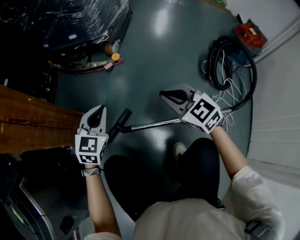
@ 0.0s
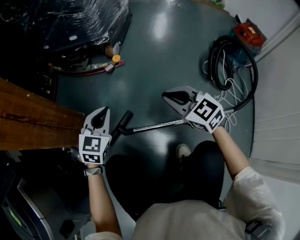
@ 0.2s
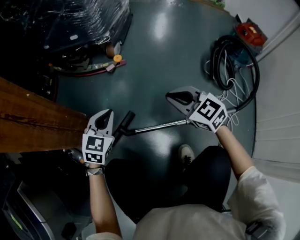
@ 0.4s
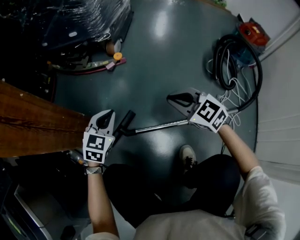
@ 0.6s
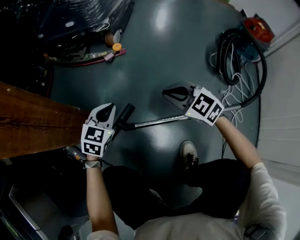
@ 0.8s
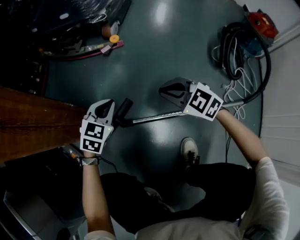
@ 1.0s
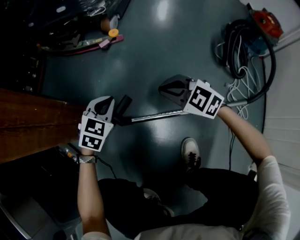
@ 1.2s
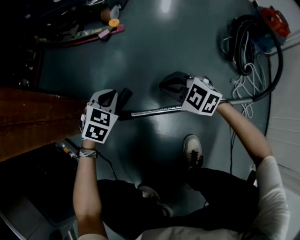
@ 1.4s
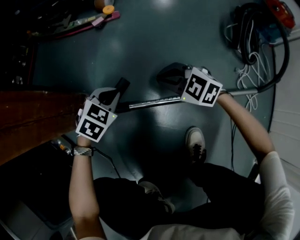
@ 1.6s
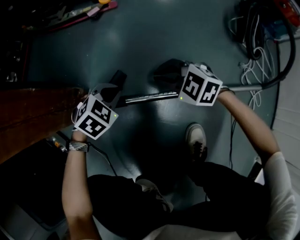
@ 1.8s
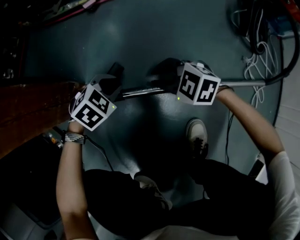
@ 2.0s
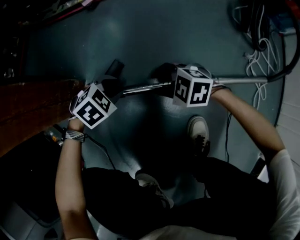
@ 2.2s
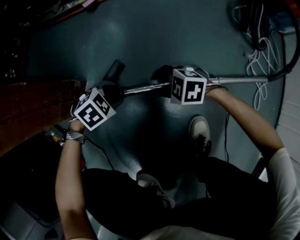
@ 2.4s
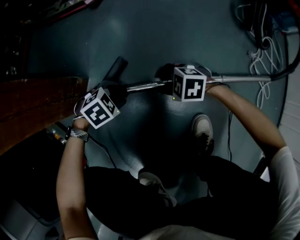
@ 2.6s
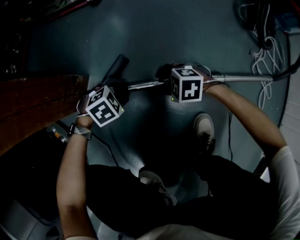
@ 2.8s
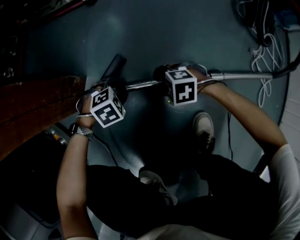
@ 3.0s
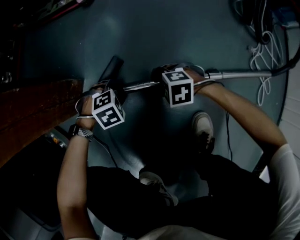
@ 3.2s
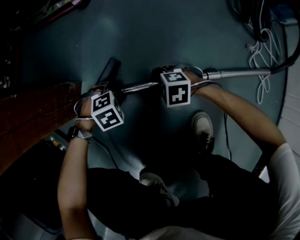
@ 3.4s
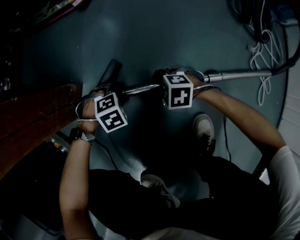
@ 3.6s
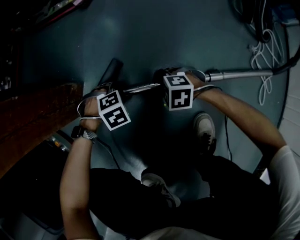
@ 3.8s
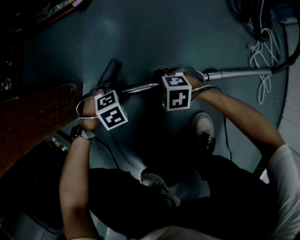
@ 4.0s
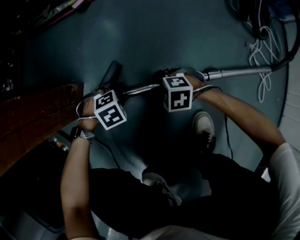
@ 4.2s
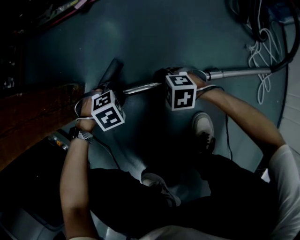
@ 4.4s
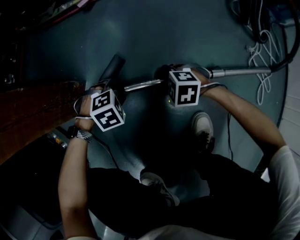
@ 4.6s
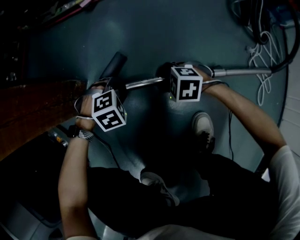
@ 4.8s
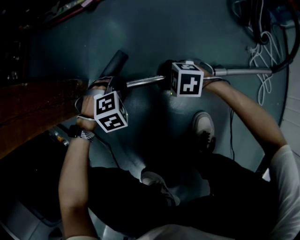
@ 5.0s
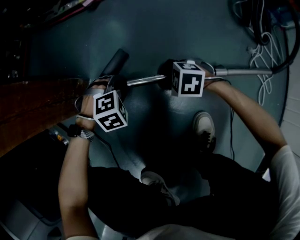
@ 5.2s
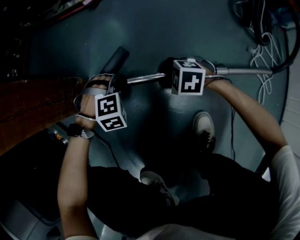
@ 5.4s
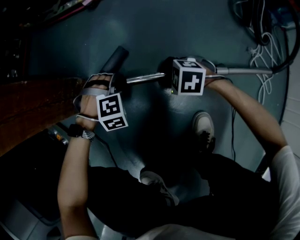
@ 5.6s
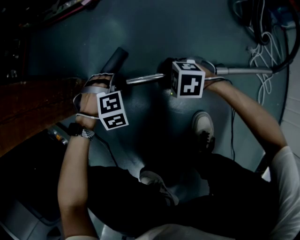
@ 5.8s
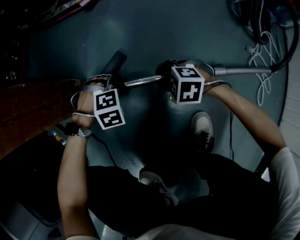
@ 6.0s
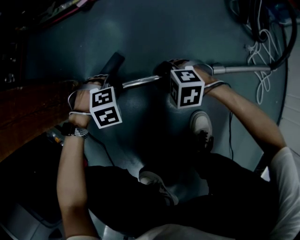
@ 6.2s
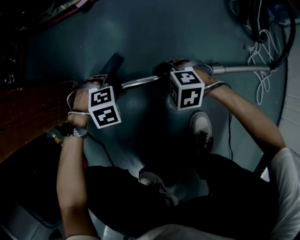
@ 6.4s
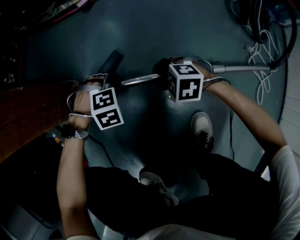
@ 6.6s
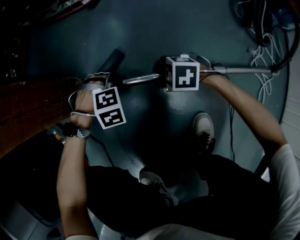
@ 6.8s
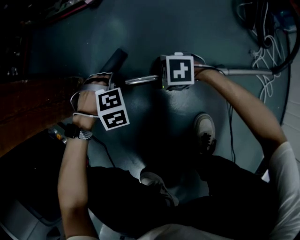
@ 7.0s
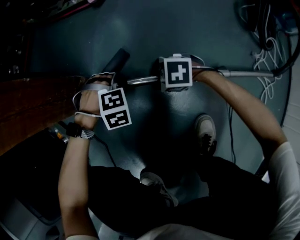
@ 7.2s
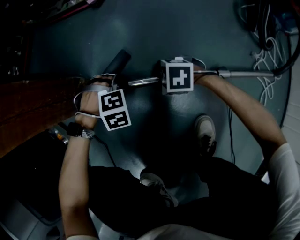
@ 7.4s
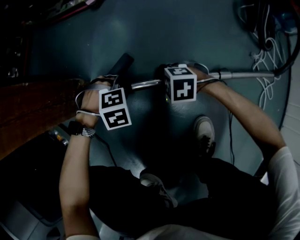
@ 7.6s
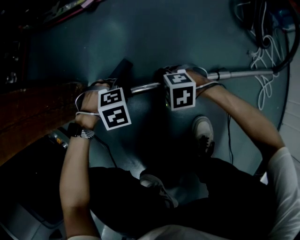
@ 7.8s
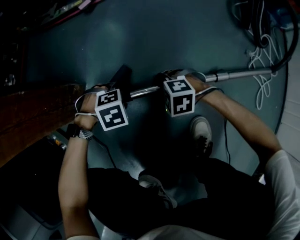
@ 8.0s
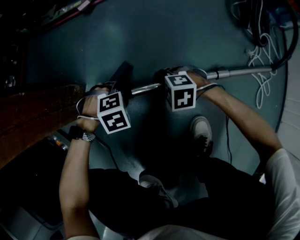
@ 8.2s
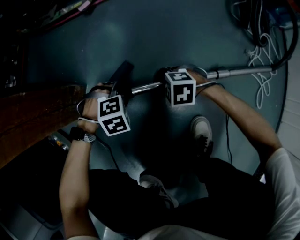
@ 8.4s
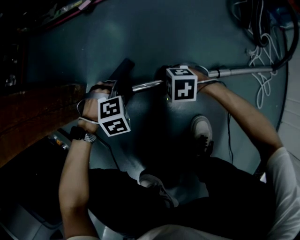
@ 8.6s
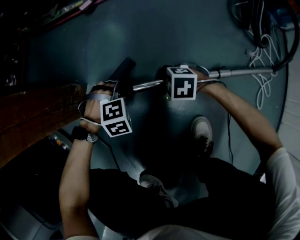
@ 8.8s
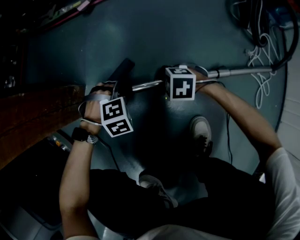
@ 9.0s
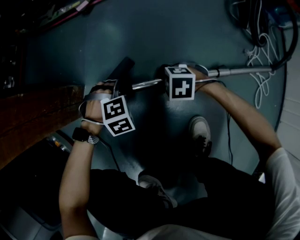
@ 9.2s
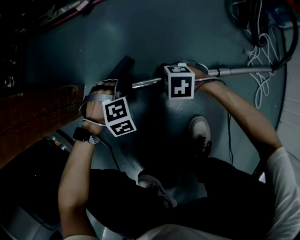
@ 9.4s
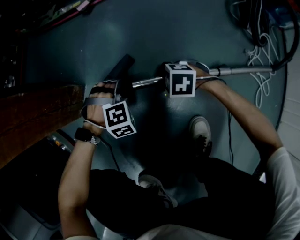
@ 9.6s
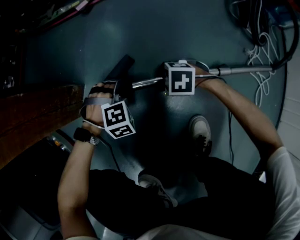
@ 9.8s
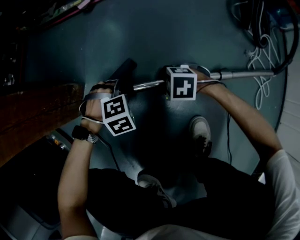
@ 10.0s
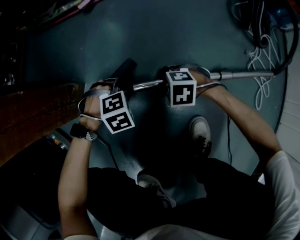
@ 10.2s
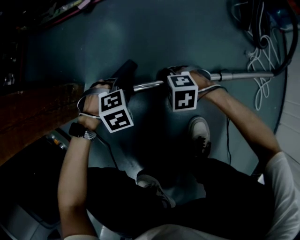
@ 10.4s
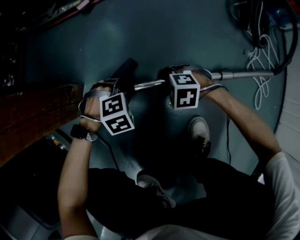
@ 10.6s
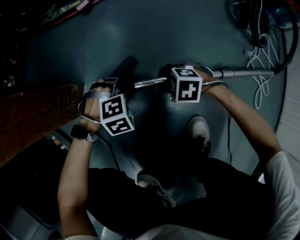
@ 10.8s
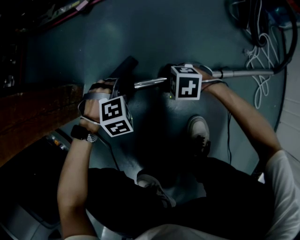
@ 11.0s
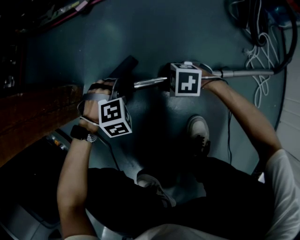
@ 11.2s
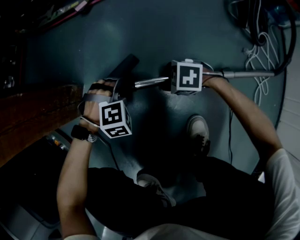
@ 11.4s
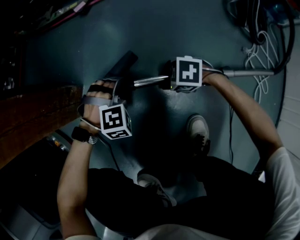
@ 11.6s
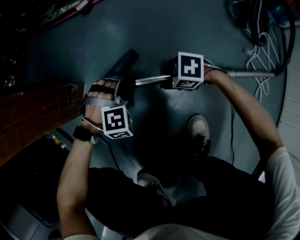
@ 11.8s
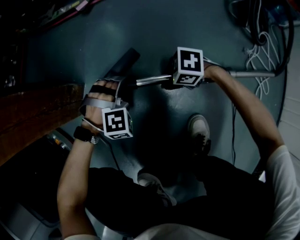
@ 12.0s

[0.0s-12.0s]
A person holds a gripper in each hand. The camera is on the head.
0.0s to 1.6s: Both grippers move downward, some 30 cm. The left gripper turns by about 30 degrees. The right gripper rotates about 30 degrees.
1.6s to 3.0s: The two grippers go roughly 15 cm downward. The left gripper rotates approximately 40 degrees, and opens its fingers. The right gripper rotates roughly 30 degrees, and opens its fingers.
3.0s to 4.4s: There are only small adjustments of the grippers.
6.0s to 10.4s: The grippers stay close to where they were, moving slightly.
10.4s to 12.0s: The right gripper rotates roughly 30 degrees, while the left gripper changes its angle by approximately 30 degrees.

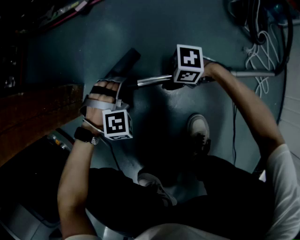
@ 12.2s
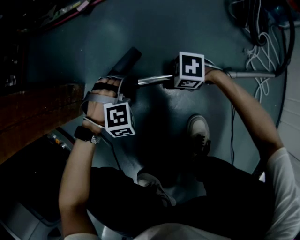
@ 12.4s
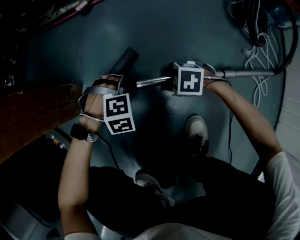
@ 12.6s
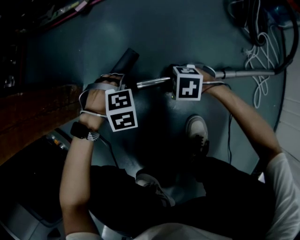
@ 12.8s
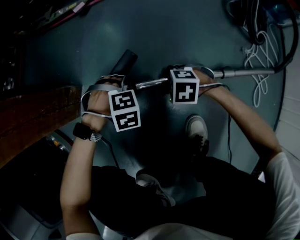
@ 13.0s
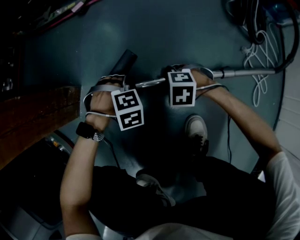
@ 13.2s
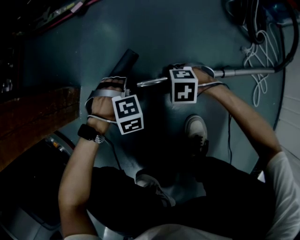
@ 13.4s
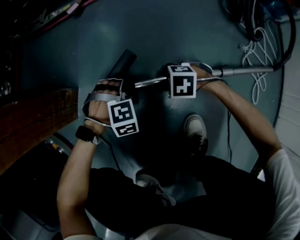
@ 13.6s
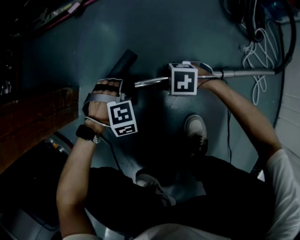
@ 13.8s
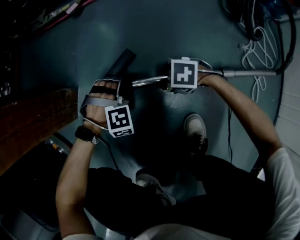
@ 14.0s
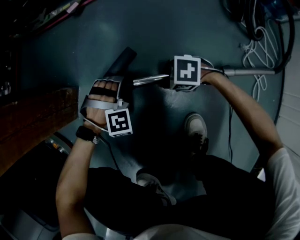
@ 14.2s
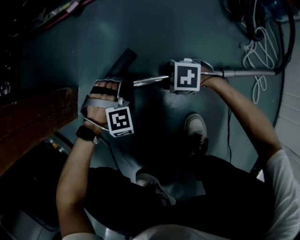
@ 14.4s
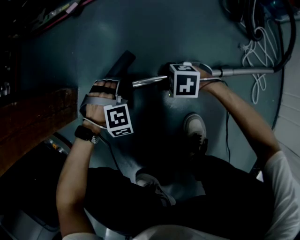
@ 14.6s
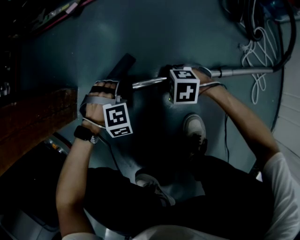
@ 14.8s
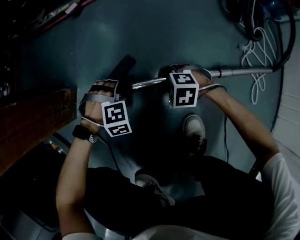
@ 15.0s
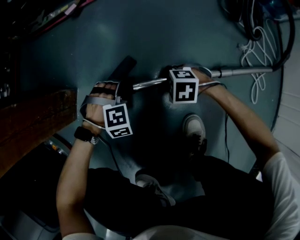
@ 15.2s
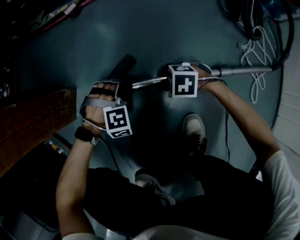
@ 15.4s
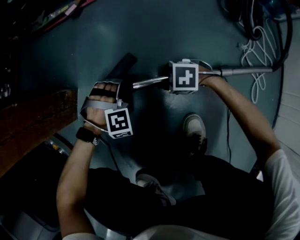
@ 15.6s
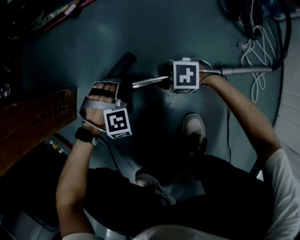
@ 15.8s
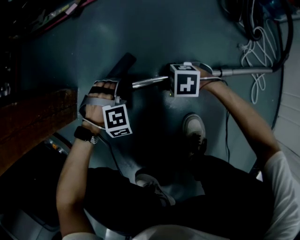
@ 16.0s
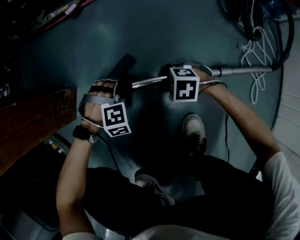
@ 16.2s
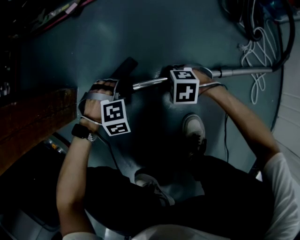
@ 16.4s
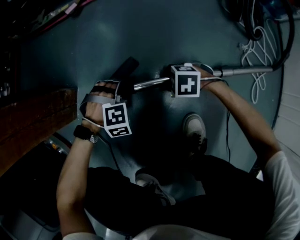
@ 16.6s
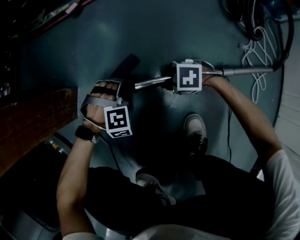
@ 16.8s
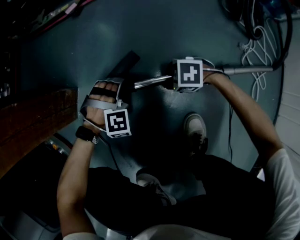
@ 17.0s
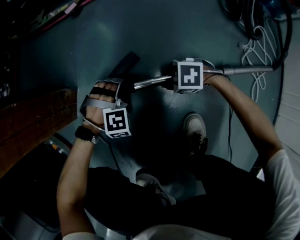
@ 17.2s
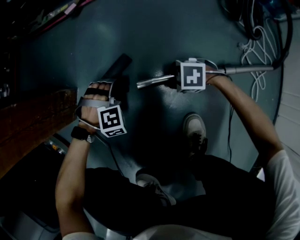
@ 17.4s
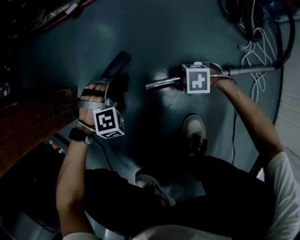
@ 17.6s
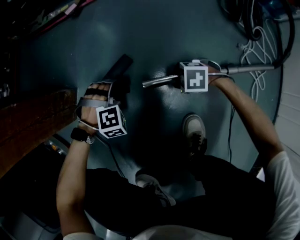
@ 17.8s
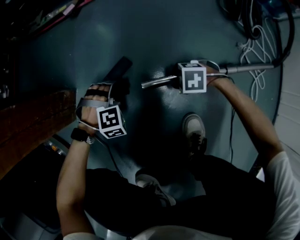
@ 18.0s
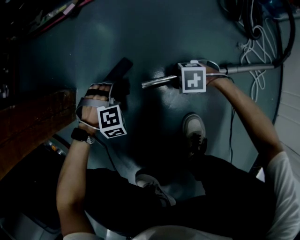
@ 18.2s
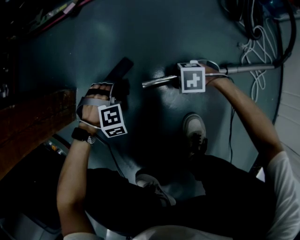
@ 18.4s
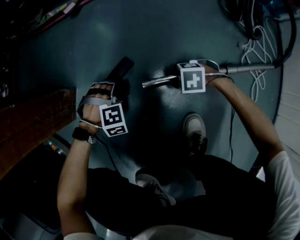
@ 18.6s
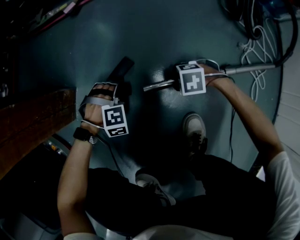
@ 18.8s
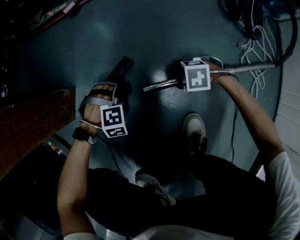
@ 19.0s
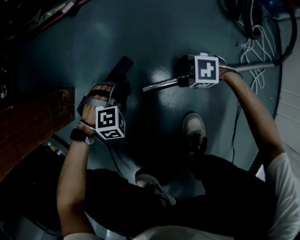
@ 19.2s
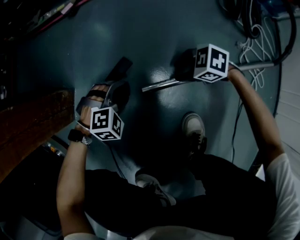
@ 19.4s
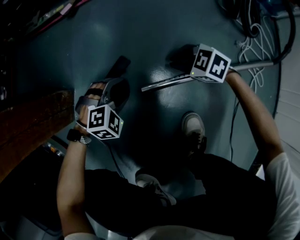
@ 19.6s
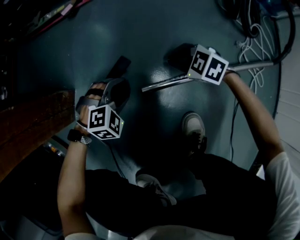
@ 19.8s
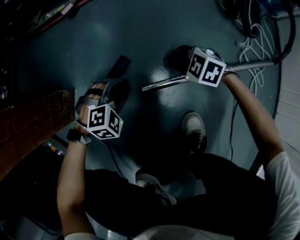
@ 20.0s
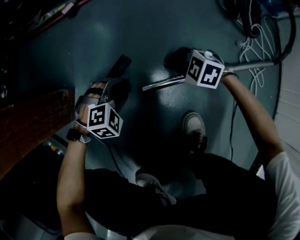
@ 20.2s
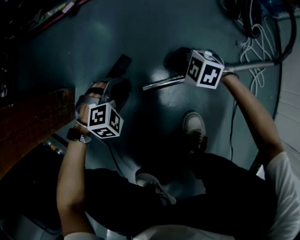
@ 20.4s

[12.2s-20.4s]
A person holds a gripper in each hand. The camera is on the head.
12.2s to 13.8s: The right gripper swivels roughly 20 degrees.
13.8s to 17.2s: The grippers stay close to where they were, moving slightly.
17.2s to 18.8s: There are only small adjustments of the grippers.
18.8s to 20.4s: The left gripper ends up some 5 cm from where it was, and changes its angle by some 20 degrees; the right gripper shifts by roughly 10 cm, swivels approximately 30 degrees, and closes.

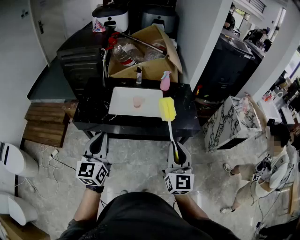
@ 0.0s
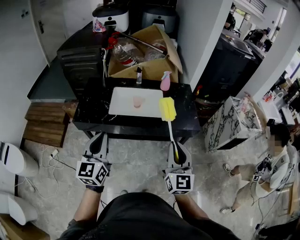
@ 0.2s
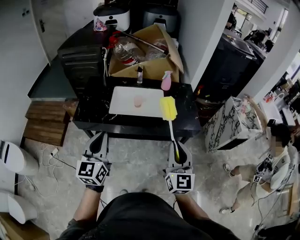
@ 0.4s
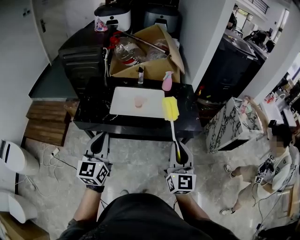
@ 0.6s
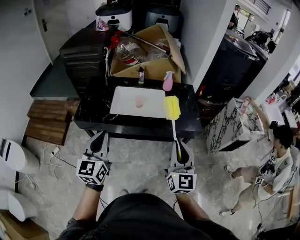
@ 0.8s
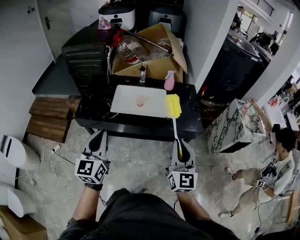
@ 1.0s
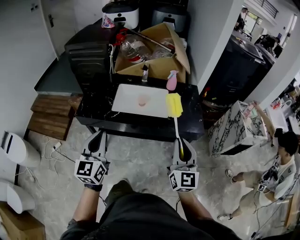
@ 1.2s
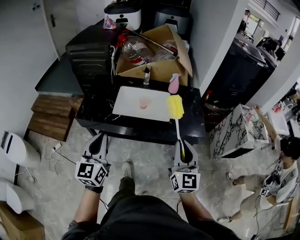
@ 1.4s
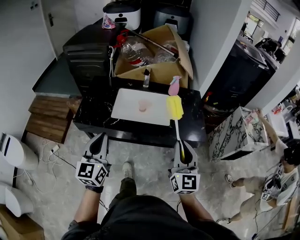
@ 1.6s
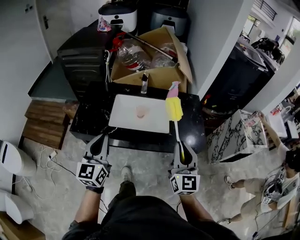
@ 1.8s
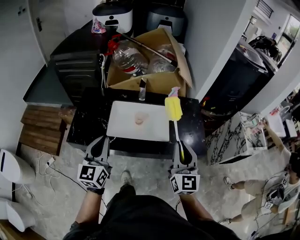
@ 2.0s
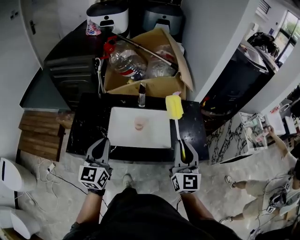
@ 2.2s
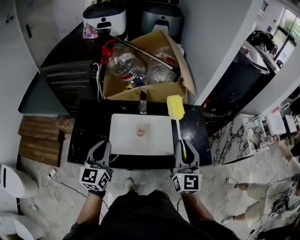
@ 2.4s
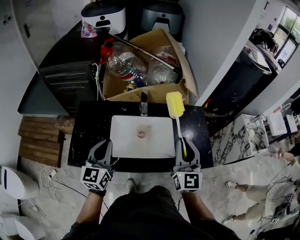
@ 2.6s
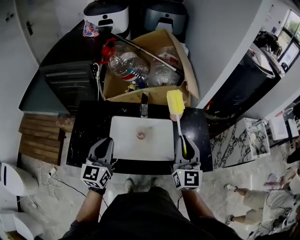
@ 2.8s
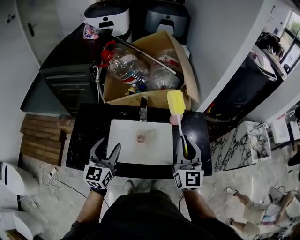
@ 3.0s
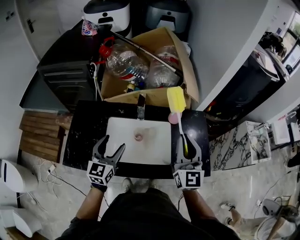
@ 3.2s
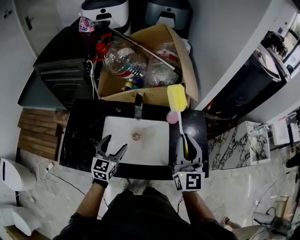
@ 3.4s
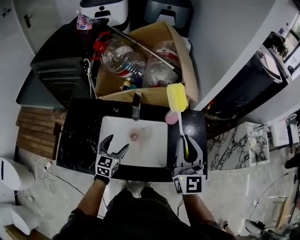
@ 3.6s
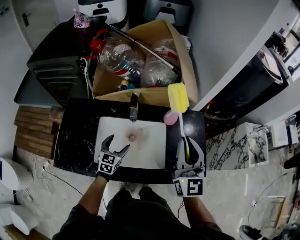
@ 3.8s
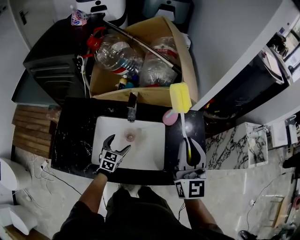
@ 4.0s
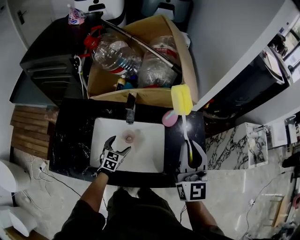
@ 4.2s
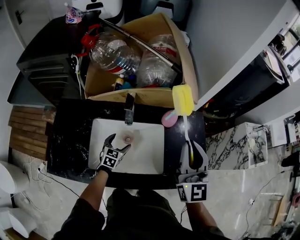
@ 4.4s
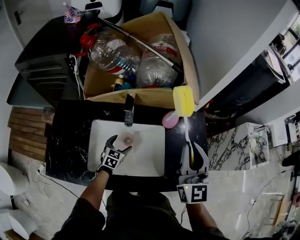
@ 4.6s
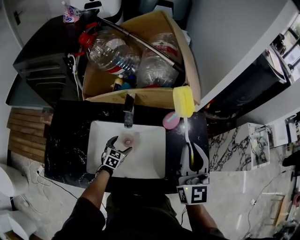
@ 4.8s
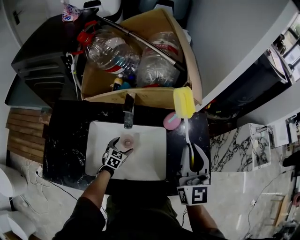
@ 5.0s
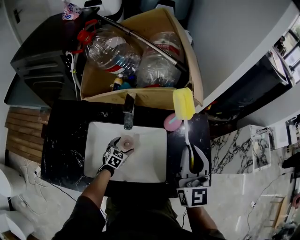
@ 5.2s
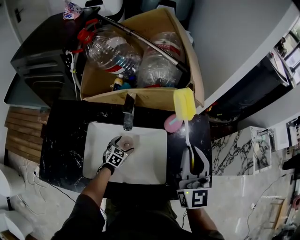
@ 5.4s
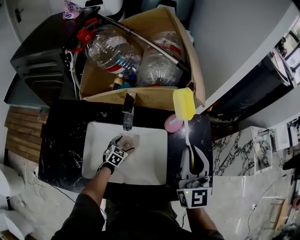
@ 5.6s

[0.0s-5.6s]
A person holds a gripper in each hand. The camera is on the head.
0.0s to 1.4s: The right gripper goes about 5 cm forward.
1.4s to 2.8s: The grippers both shift forward by some 30 cm.
2.8s to 4.2s: The left gripper shifts some 35 cm downward and forward, angles its fingers downward, by approximately 30 degrees, and opens up; the right gripper moves forward and to the right, roughly 10 cm.
4.2s to 5.6s: The left gripper is displaced downward and forward by some 15 cm. Meanwhile the right gripper is displaced downward by approximately 10 cm.
